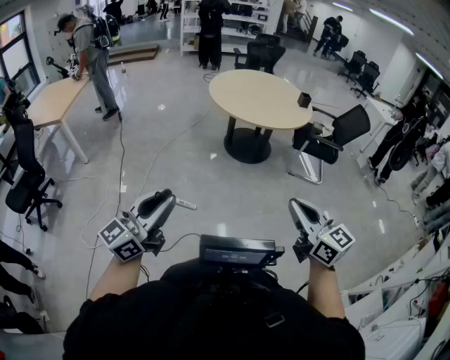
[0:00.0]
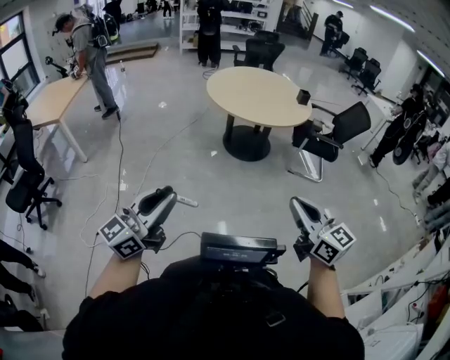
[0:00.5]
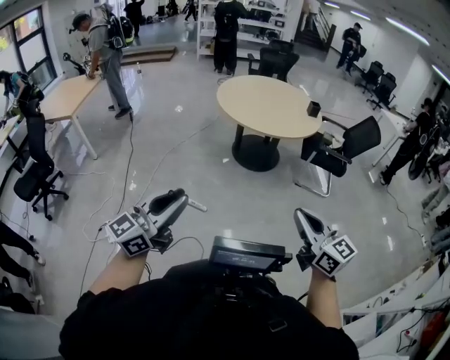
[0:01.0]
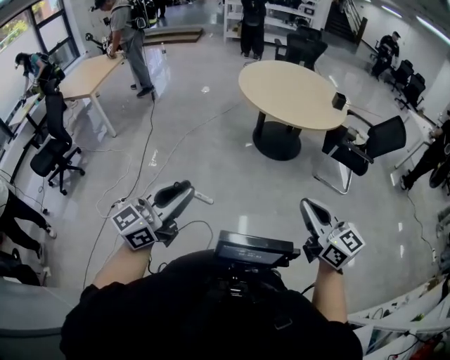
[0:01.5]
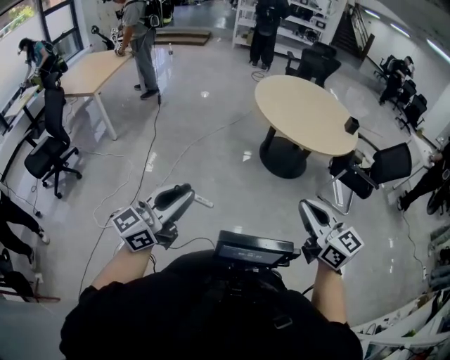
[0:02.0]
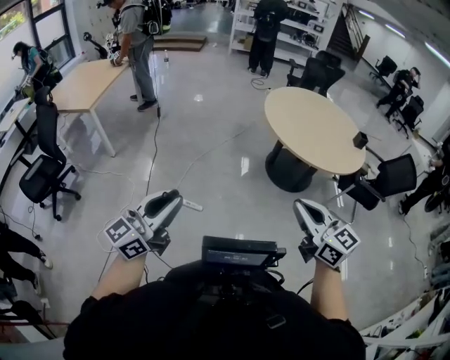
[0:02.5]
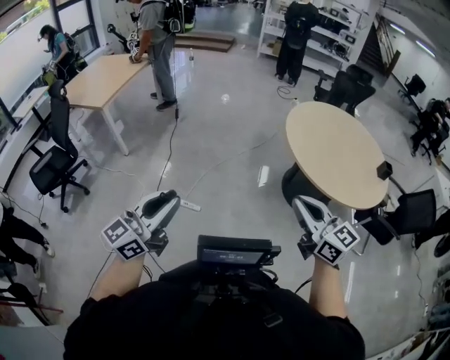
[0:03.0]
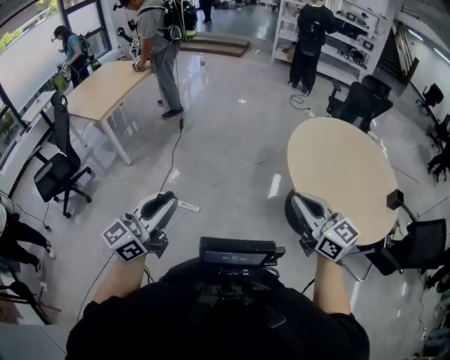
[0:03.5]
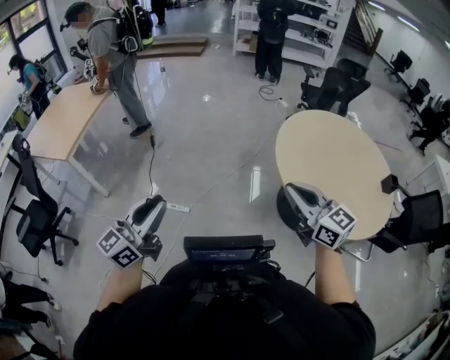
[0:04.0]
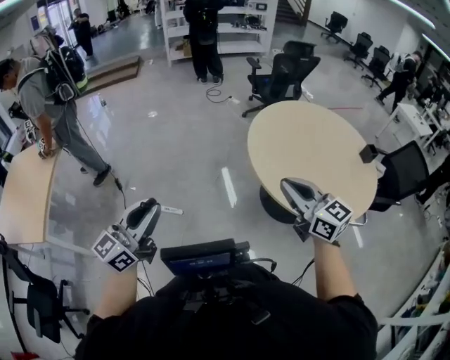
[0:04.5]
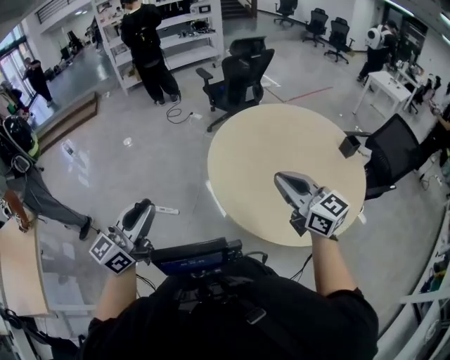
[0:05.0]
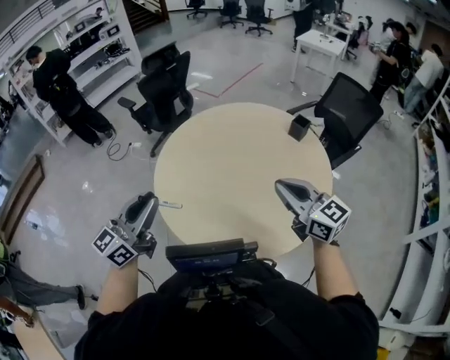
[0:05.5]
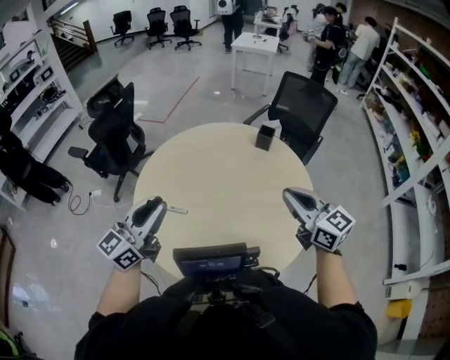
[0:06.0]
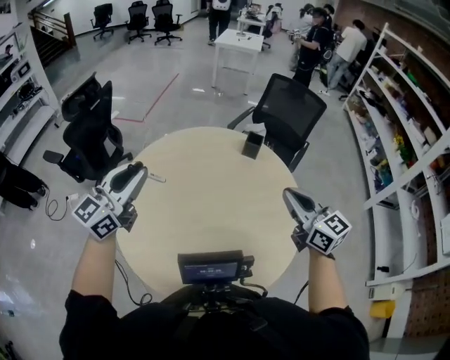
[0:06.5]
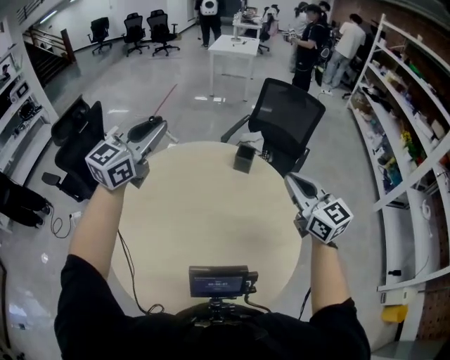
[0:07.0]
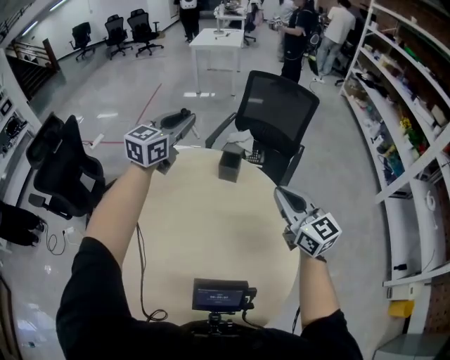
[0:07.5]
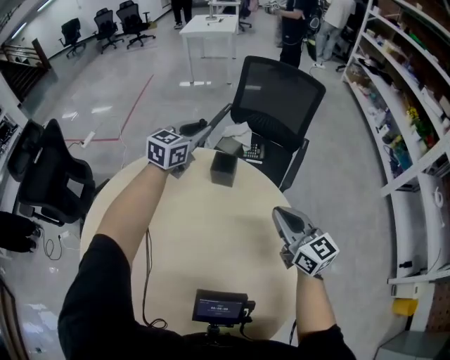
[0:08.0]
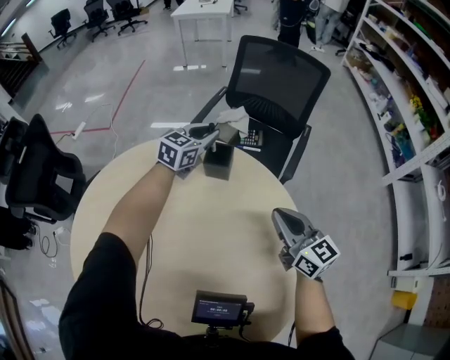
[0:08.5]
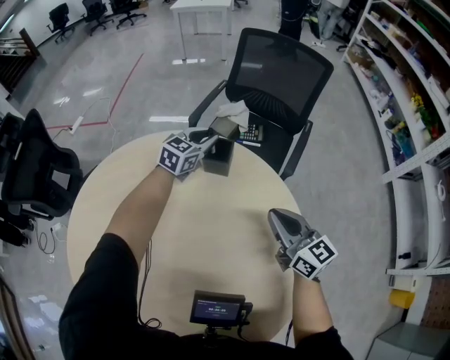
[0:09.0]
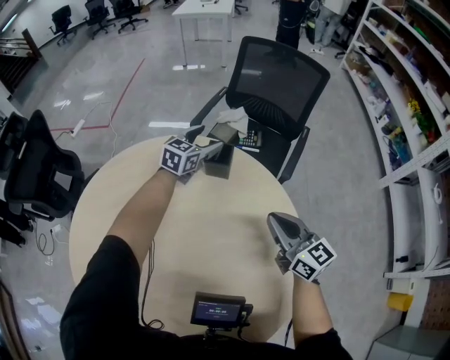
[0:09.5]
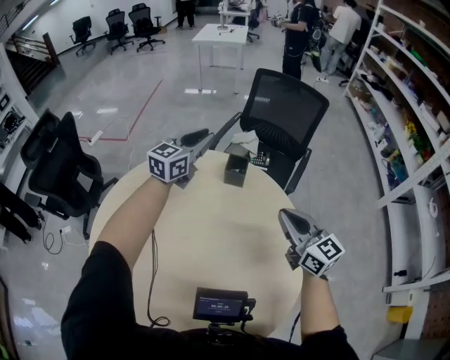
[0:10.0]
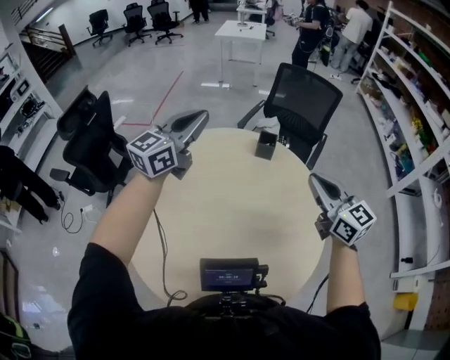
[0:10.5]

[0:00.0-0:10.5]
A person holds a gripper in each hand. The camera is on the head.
0.0 to 2.0 s: The grippers both shift forward by approximately 15 cm. The left gripper travels to the right and back again, some 10 cm each way.
2.0 to 4.0 s: The pair of grippers is taken forward, roughly 70 cm.
4.0 to 6.5 s: The two grippers travel together, roughly 80 cm. The left gripper rotates approximately 80 degrees. Meanwhile the right gripper swivels roughly 90 degrees.
6.5 to 8.5 s: The right gripper heads forward, downward and to the right, covering roughly 40 cm; the left gripper heads forward, to the right and downward, covering approximately 70 cm, and rotates about 30 degrees.
8.5 to 10.5 s: The left gripper is displaced upward, backward and to the left by some 50 cm, rotates approximately 30 degrees, and opens, then closes again, while the right gripper shifts about 25 cm upward and backward.

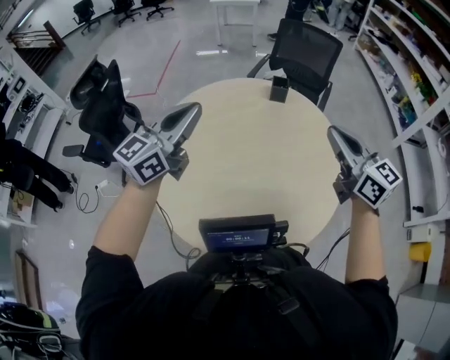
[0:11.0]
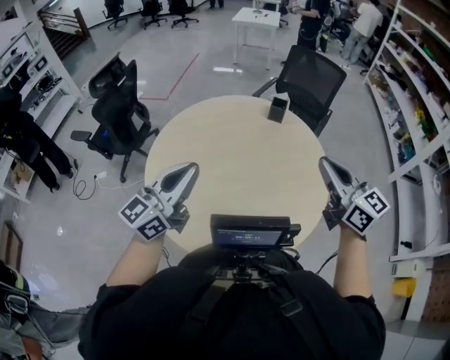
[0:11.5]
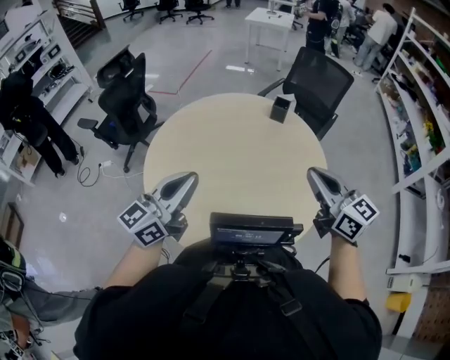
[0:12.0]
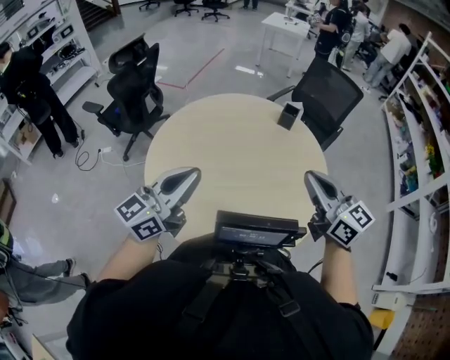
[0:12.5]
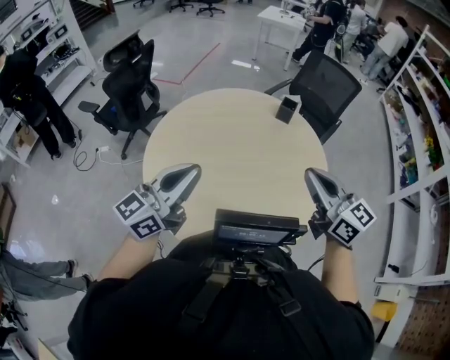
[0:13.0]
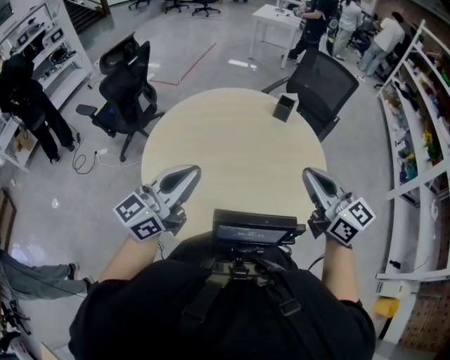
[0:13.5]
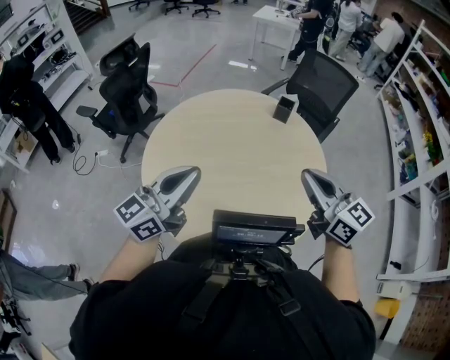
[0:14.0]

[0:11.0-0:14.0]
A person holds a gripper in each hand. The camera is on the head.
11.0 to 12.5 s: The right gripper travels backward by approximately 5 cm, while the left gripper travels backward by approximately 20 cm.
12.5 to 14.0 s: The two grippers keep their place.

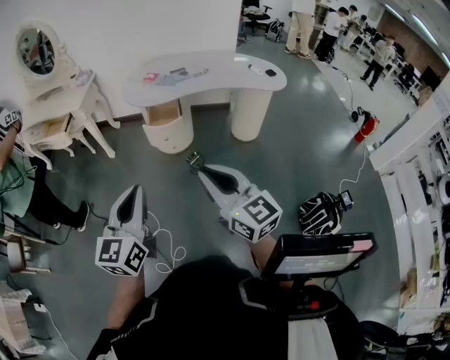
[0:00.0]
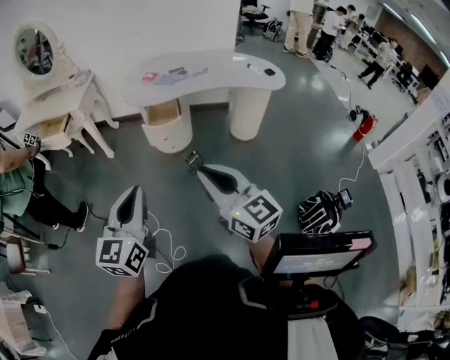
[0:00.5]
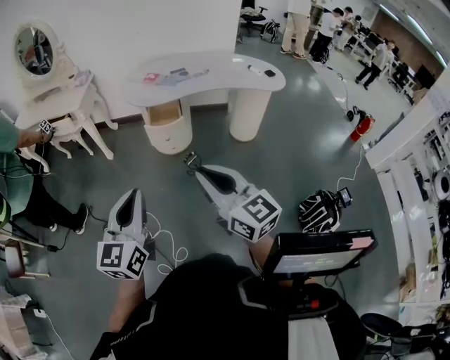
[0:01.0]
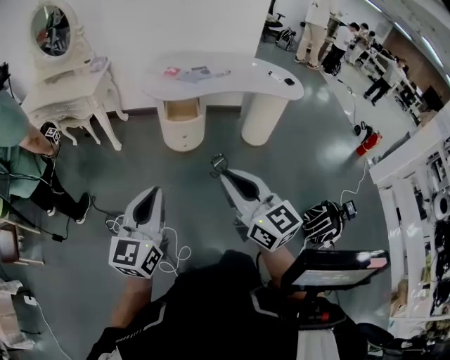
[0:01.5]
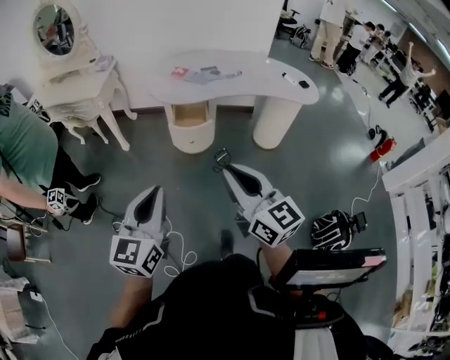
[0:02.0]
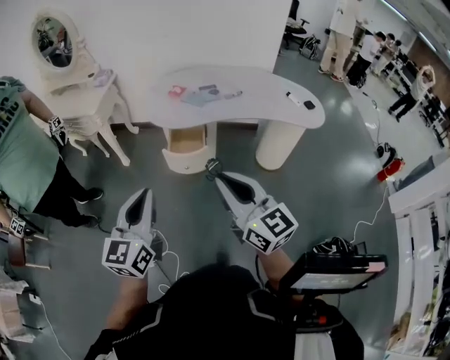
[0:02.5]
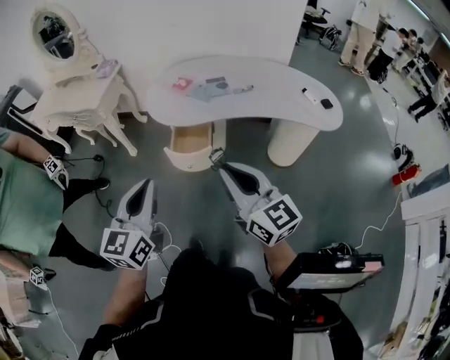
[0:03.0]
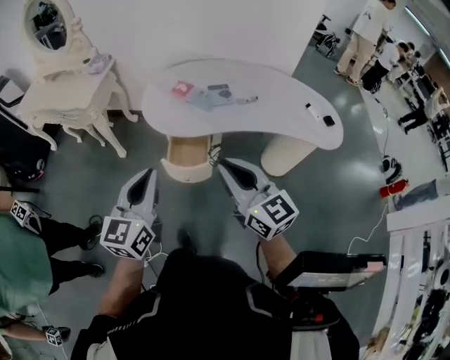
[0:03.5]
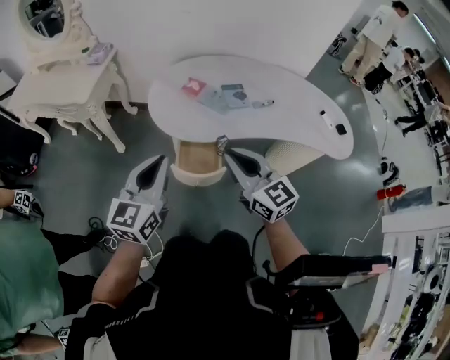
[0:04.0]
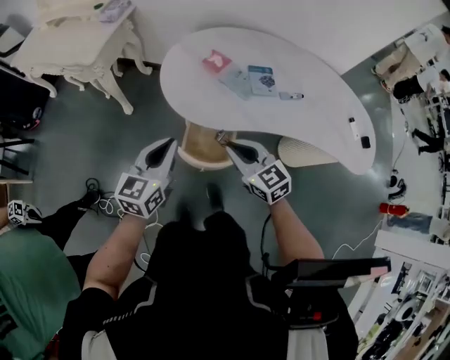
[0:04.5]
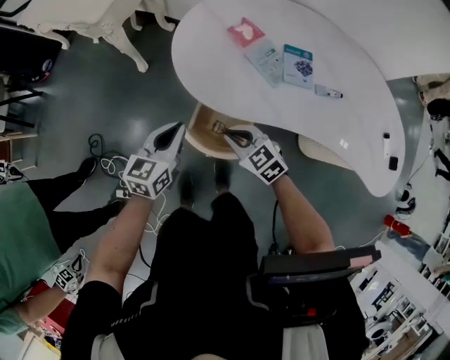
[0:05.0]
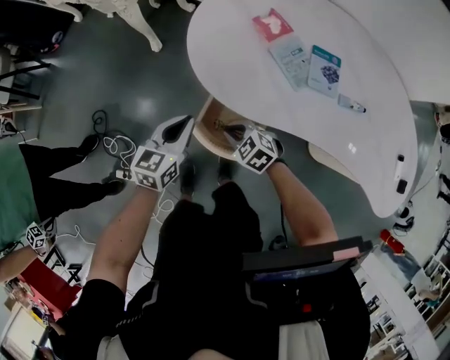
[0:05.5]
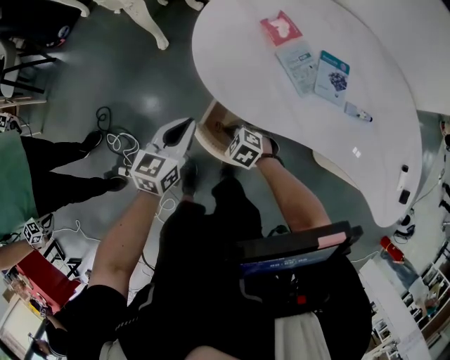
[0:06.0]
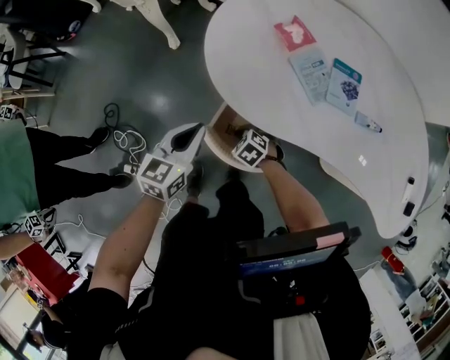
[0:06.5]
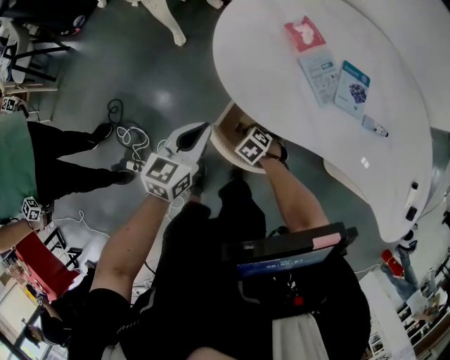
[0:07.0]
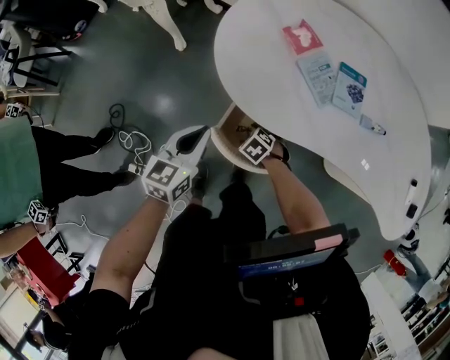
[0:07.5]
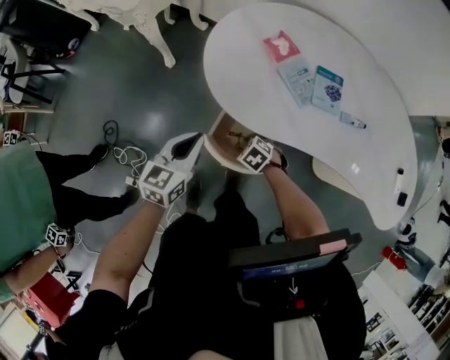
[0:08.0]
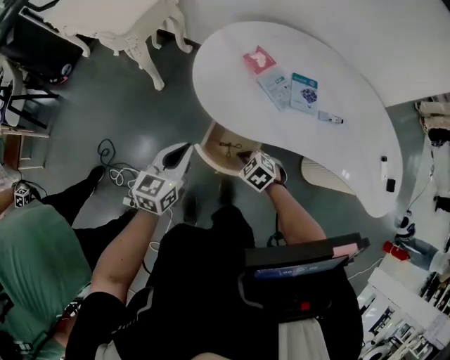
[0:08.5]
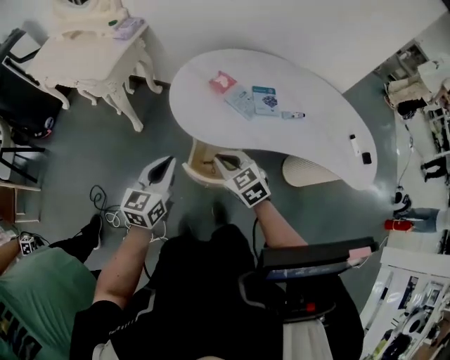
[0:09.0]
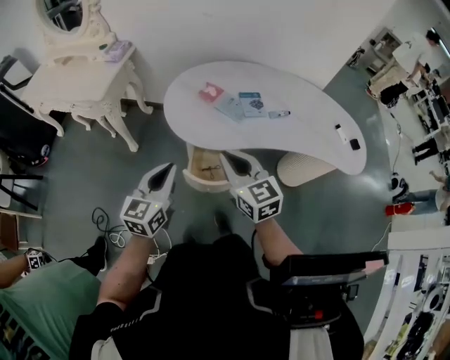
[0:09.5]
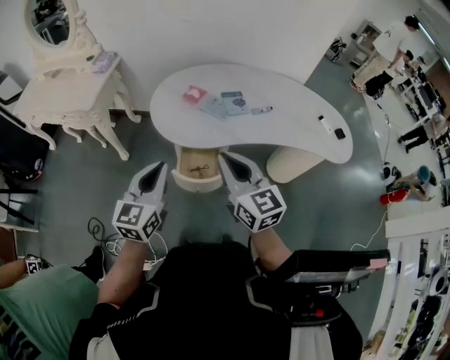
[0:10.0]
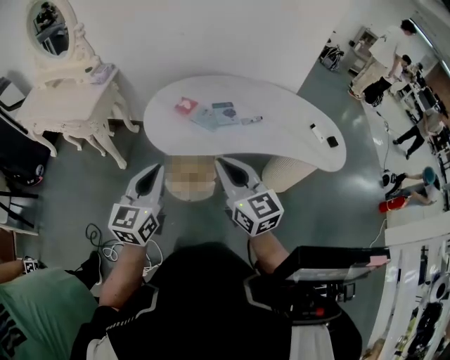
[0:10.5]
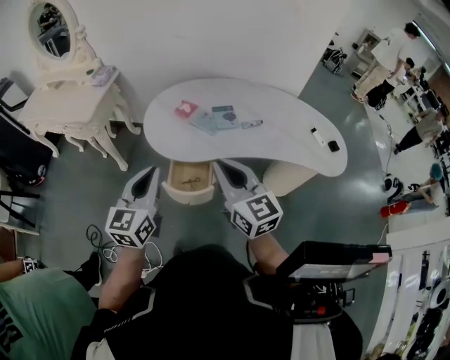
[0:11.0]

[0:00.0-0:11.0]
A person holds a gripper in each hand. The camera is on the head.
0.0 to 2.0 s: The grippers both shift forward and to the left by some 10 cm.
2.0 to 3.5 s: Both grippers move forward, about 30 cm.
3.5 to 5.5 s: Both grippers move downward, approximately 40 cm. The left gripper swivels some 30 degrees; the right gripper angles its fingers downward, by about 50 degrees.
5.5 to 7.5 s: The right gripper is displaced downward by some 10 cm, changes its angle by about 20 degrees, and opens its fingers.
7.5 to 9.0 s: The right gripper moves upward, approximately 35 cm, points its fingers approximately 40 degrees further upward, and closes. The left gripper heads upward, covering some 15 cm.
9.0 to 11.0 s: The right gripper moves upward, backward and to the right, some 25 cm, and angles its fingers upward, by about 30 degrees. The left gripper heads upward, backward and to the right, covering approximately 15 cm.

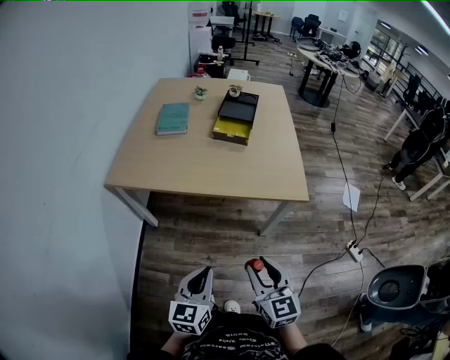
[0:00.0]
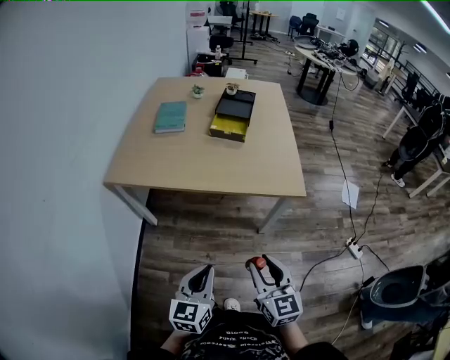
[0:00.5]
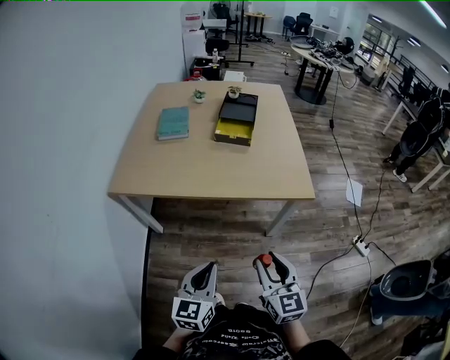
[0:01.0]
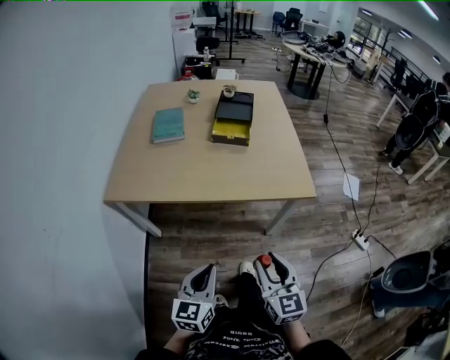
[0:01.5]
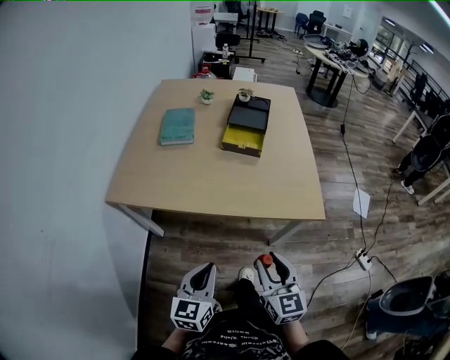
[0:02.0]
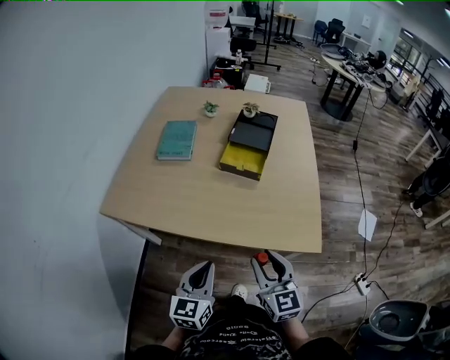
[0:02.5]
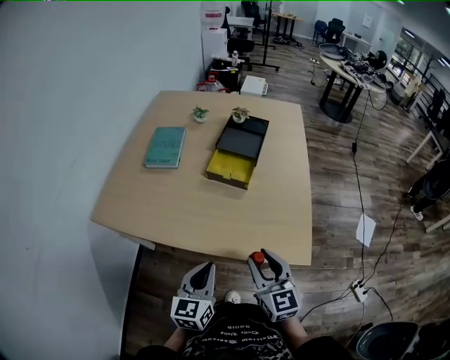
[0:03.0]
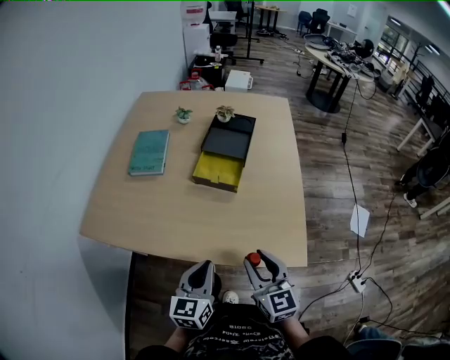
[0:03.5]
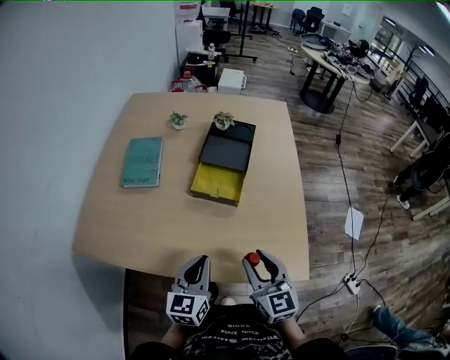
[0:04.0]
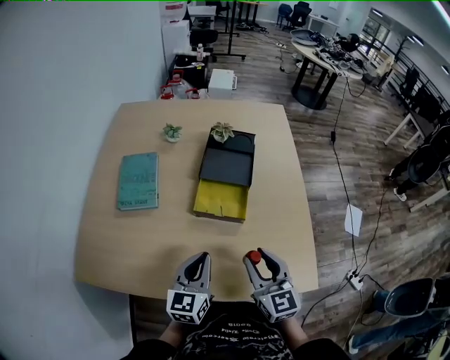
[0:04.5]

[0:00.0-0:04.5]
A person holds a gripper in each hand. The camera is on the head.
0.0 to 2.0 s: Both grippers move forward, some 15 cm.
2.0 to 4.5 s: Both grippers travel together forward, some 40 cm.
